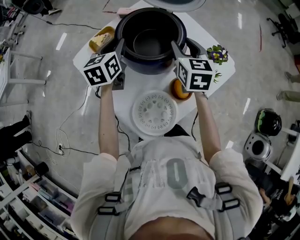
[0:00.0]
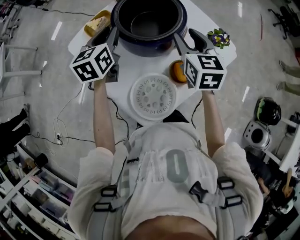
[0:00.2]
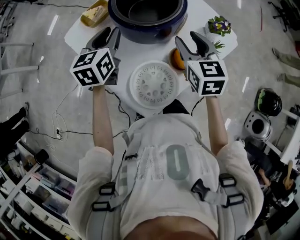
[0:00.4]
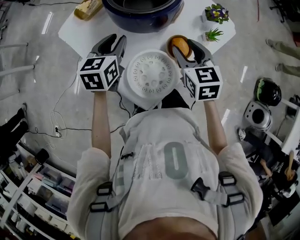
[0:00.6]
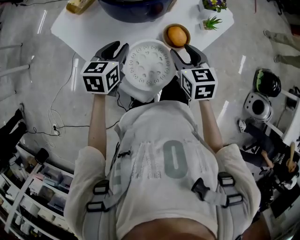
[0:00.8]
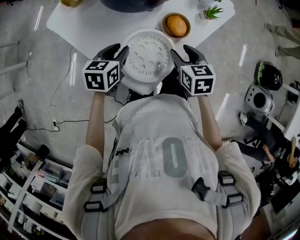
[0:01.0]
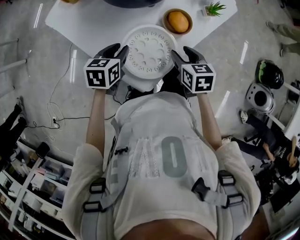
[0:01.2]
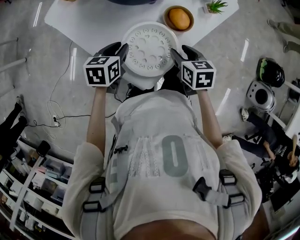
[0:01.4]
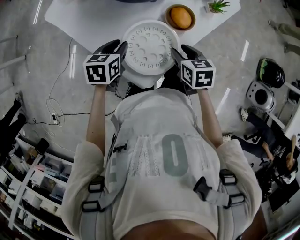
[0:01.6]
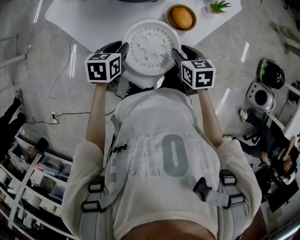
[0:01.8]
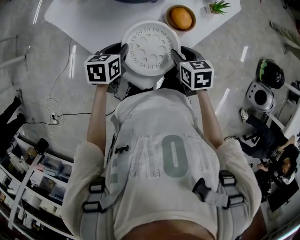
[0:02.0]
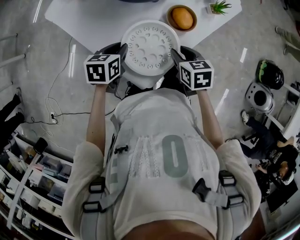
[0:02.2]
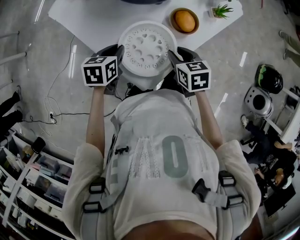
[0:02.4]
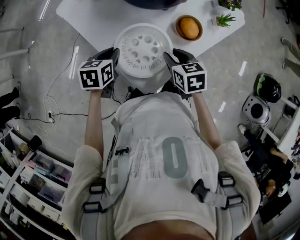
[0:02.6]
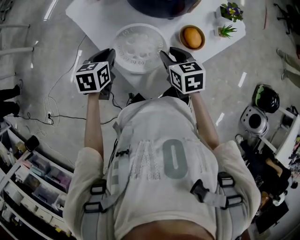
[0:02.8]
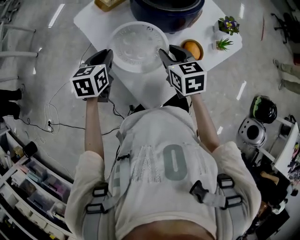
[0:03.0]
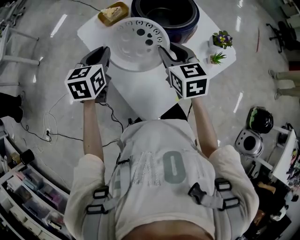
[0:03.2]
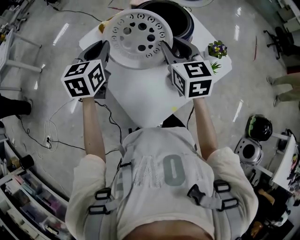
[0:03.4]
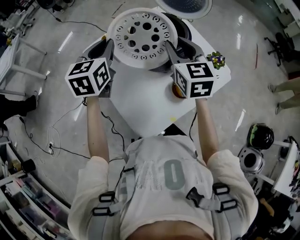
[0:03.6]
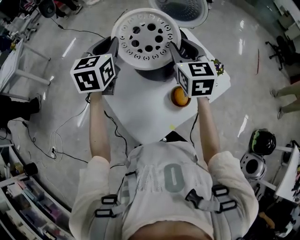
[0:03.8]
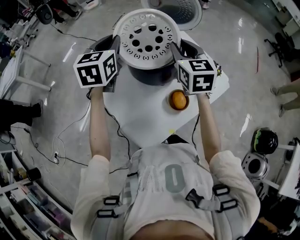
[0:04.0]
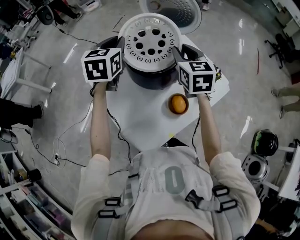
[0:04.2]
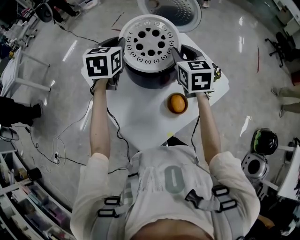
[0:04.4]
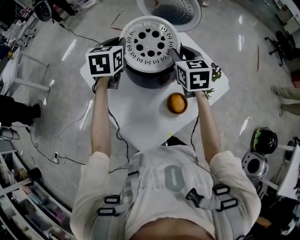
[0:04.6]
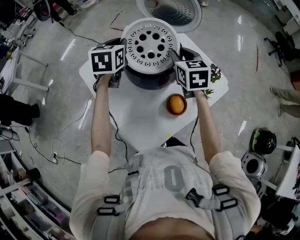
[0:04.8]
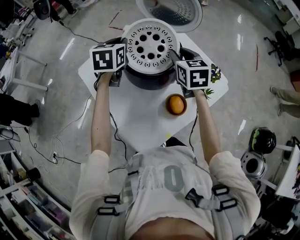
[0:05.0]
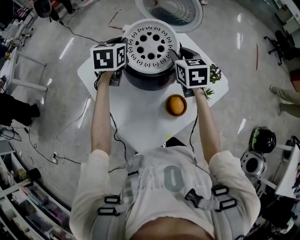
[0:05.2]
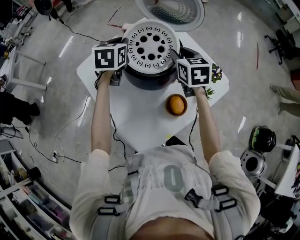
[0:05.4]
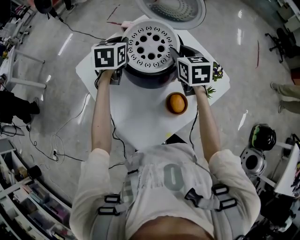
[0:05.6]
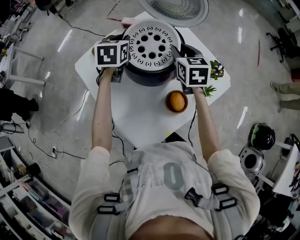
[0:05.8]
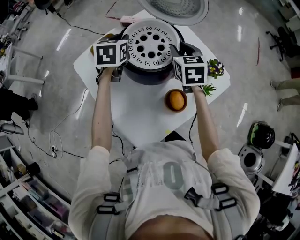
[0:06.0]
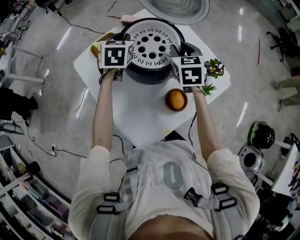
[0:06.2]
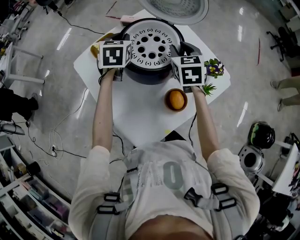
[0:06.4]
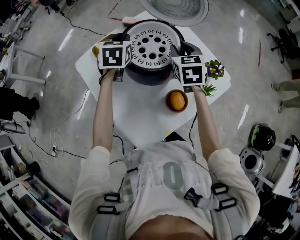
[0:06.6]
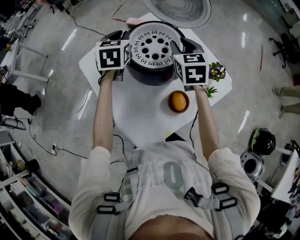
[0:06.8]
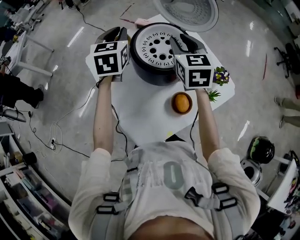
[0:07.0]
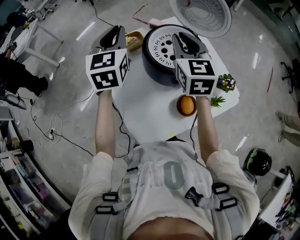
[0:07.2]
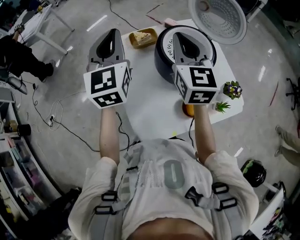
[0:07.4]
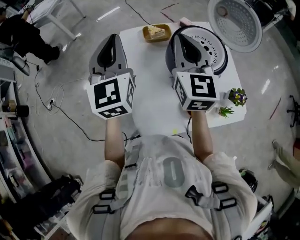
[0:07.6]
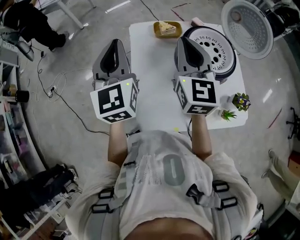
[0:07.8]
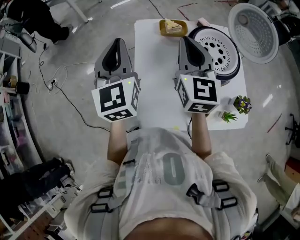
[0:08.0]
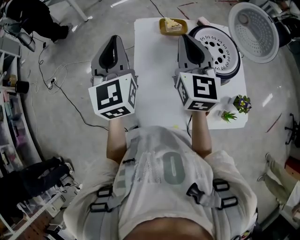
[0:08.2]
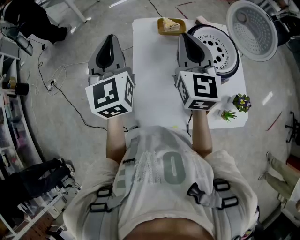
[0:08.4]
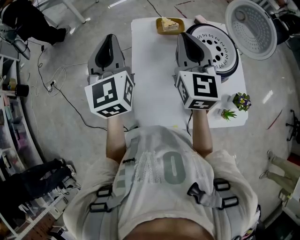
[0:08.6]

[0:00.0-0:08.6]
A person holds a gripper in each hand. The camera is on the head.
0:00.0 to 0:01.4: Both grippers travel together backward and downward, about 35 cm. The right gripper swivels some 30 degrees. The left gripper changes its angle by approximately 30 degrees.
0:01.4 to 0:02.8: The left gripper shifts about 10 cm to the left. The right gripper moves to the left and upward, roughly 10 cm.
0:02.8 to 0:04.4: Both grippers move upward, forward and to the right, about 35 cm. The left gripper swivels roughly 30 degrees. Meanwhile the right gripper swivels roughly 30 degrees.
0:04.4 to 0:05.8: The right gripper is displaced downward by some 5 cm; the left gripper is displaced downward and forward by roughly 10 cm.
0:05.8 to 0:07.2: The right gripper travels upward and to the left by some 15 cm, and changes its angle by some 20 degrees, while the left gripper moves upward, backward and to the left, some 20 cm, and swivels roughly 30 degrees.
0:07.2 to 0:08.6: The right gripper shifts about 15 cm to the left, and changes its angle by roughly 20 degrees. The left gripper moves to the left and backward, approximately 25 cm, and changes its angle by roughly 30 degrees.

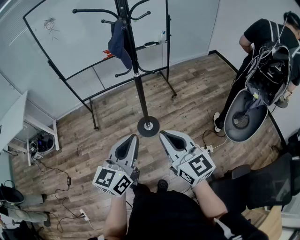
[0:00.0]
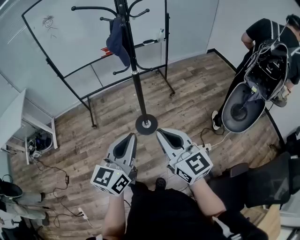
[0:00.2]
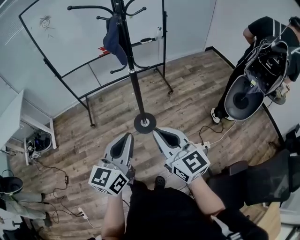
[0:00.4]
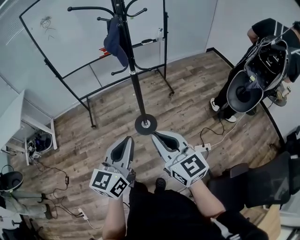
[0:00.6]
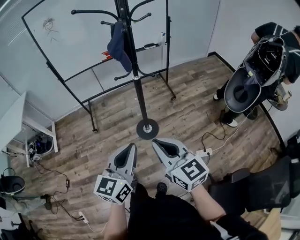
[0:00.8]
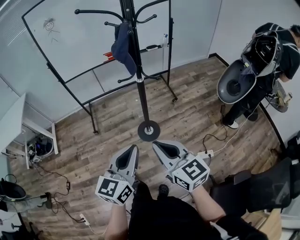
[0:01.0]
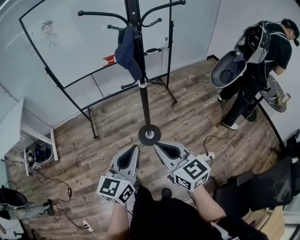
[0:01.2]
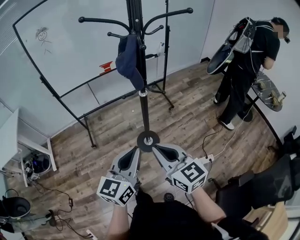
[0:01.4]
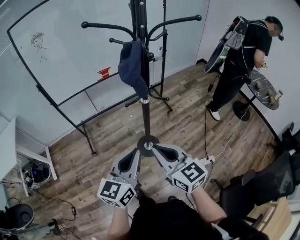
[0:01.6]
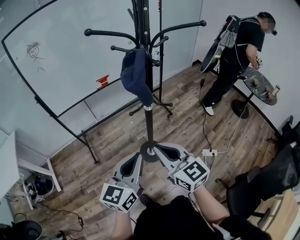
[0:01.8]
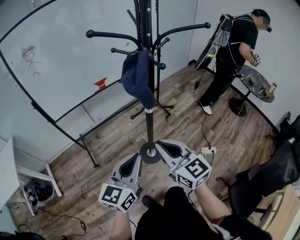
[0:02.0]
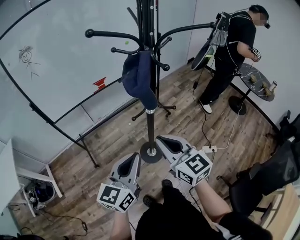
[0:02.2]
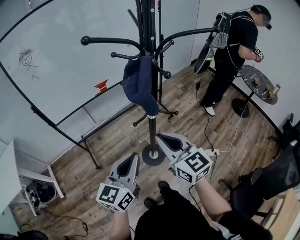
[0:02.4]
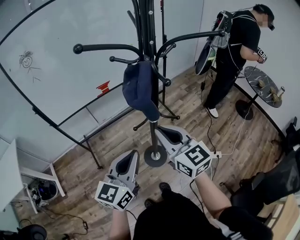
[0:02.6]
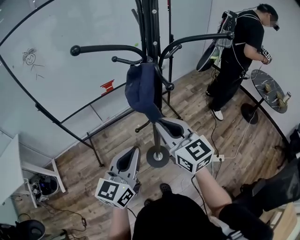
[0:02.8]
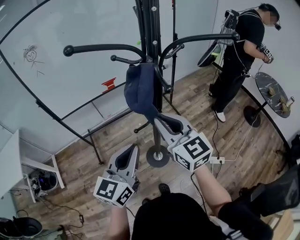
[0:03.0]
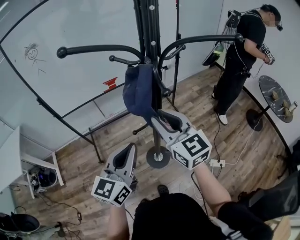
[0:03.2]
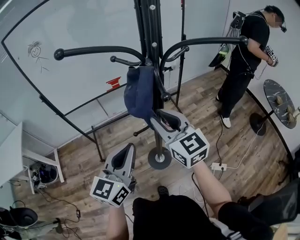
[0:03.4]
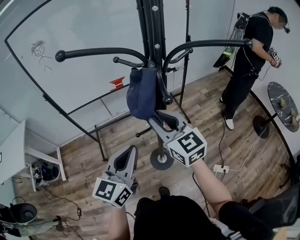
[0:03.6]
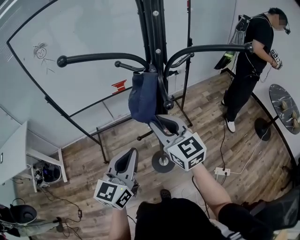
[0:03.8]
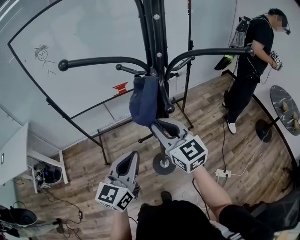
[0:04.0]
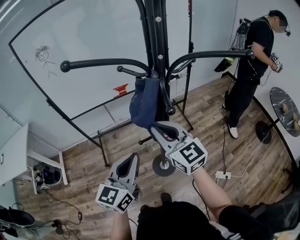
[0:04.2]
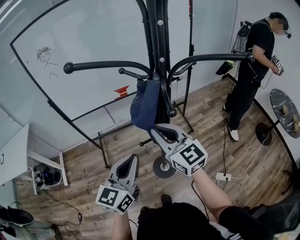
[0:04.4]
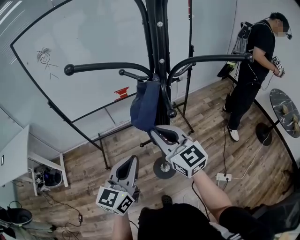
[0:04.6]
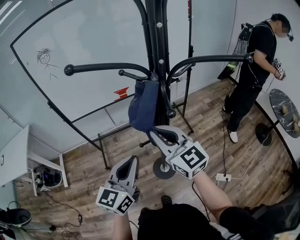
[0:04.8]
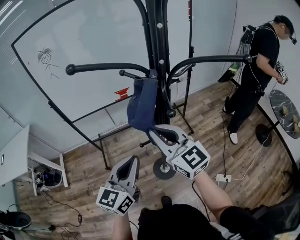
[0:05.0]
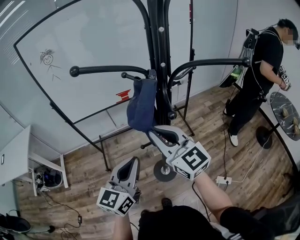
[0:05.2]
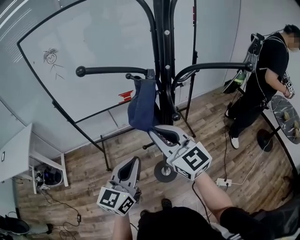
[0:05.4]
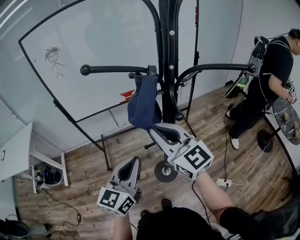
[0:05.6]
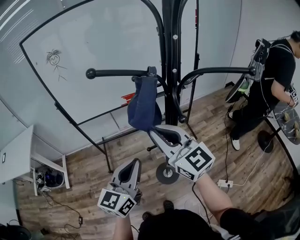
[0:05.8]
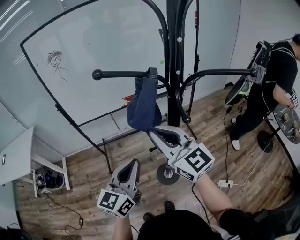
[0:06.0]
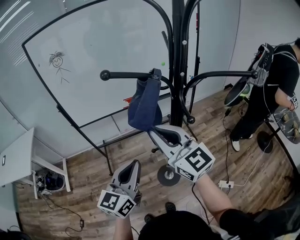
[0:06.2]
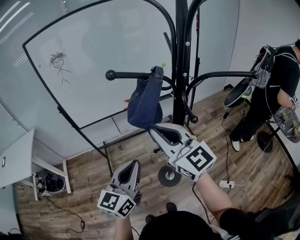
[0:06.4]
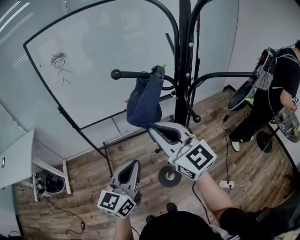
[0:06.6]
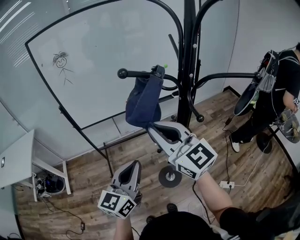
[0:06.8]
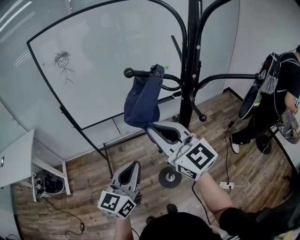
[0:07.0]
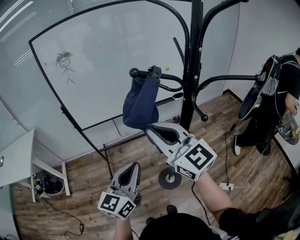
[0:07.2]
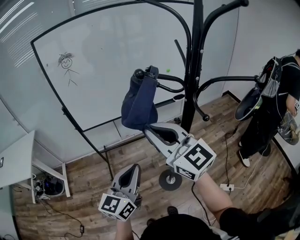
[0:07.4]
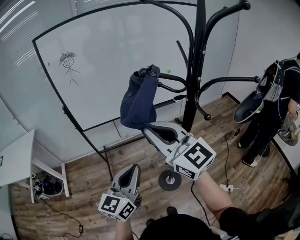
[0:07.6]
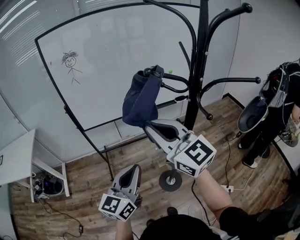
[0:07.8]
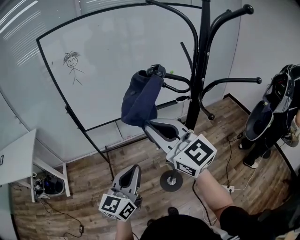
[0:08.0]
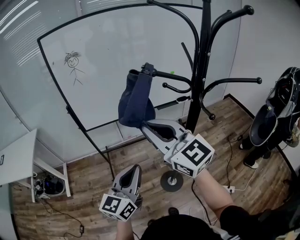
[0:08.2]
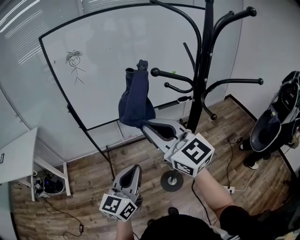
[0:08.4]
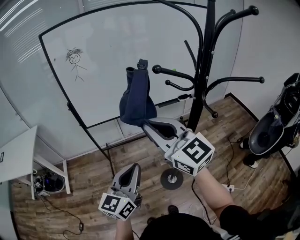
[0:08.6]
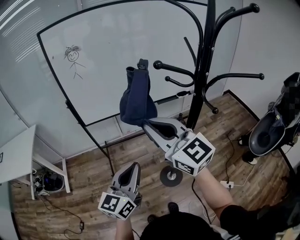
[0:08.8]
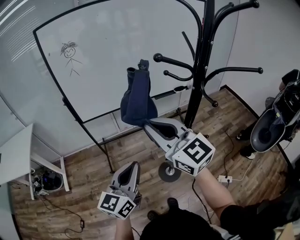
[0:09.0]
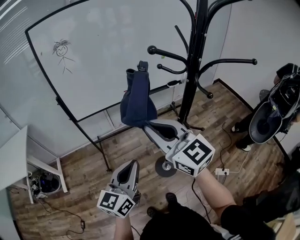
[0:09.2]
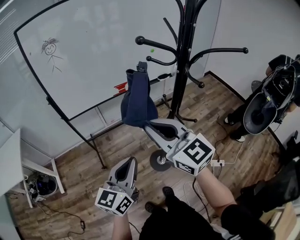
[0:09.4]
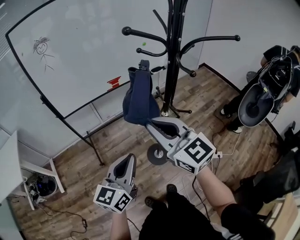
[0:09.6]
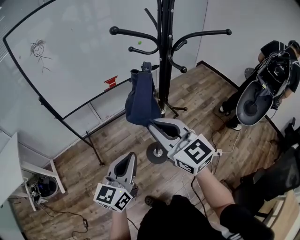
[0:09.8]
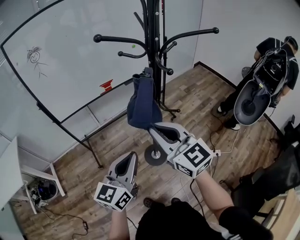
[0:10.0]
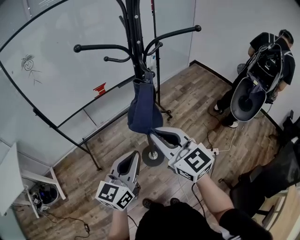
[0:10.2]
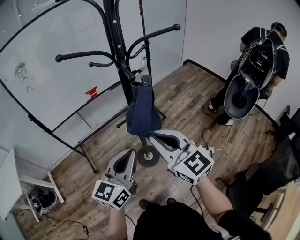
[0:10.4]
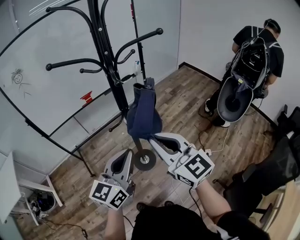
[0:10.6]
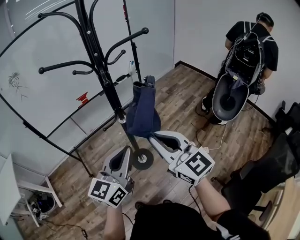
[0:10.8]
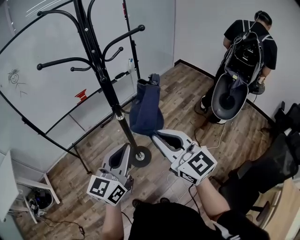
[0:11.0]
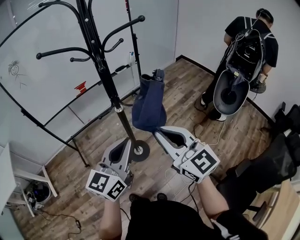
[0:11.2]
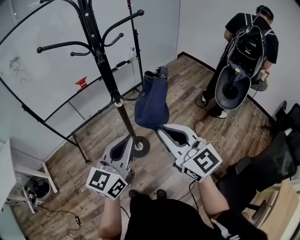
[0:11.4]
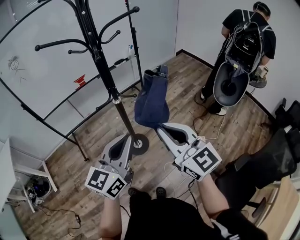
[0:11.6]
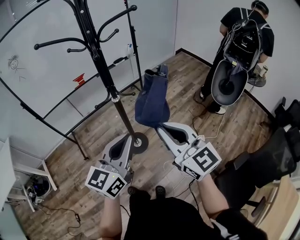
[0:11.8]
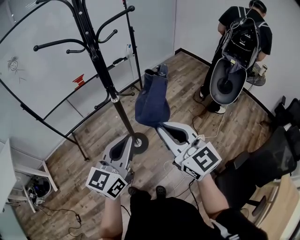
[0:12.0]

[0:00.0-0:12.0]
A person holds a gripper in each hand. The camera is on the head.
0:00.0 to 0:01.6: The grippers both shift forward and to the left by about 20 cm.
0:01.6 to 0:03.0: The two grippers go roughly 20 cm forward.
0:03.0 to 0:04.4: The grippers stay close to where they were, moving slightly.
0:04.4 to 0:06.0: The right gripper shifts roughly 10 cm upward.
0:06.0 to 0:07.6: The left gripper heads to the left, covering about 10 cm, while the right gripper moves to the left and upward, about 10 cm.
0:07.6 to 0:09.0: The grippers move only a little.
0:09.0 to 0:10.4: The left gripper heads to the right, covering roughly 20 cm. The right gripper shifts approximately 25 cm to the right and backward.
0:10.4 to 0:12.0: The grippers both shift to the right and backward by roughly 15 cm.

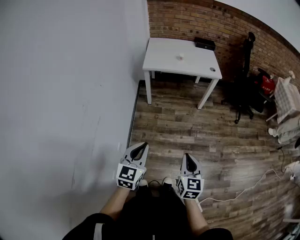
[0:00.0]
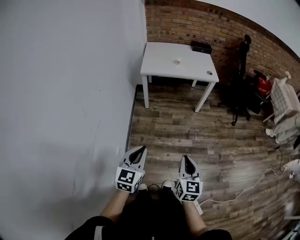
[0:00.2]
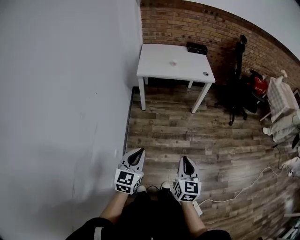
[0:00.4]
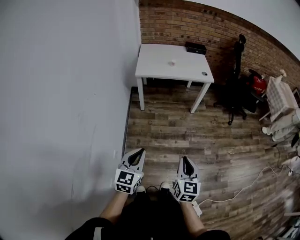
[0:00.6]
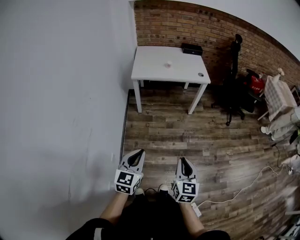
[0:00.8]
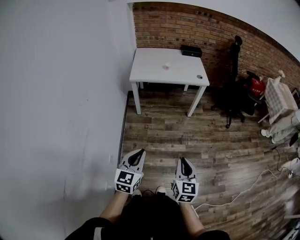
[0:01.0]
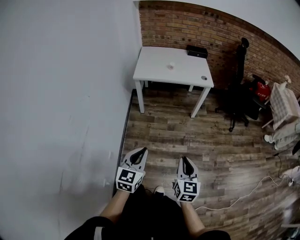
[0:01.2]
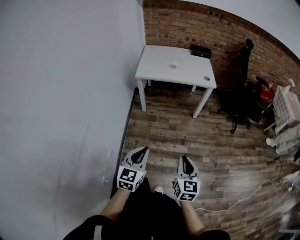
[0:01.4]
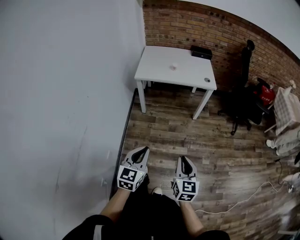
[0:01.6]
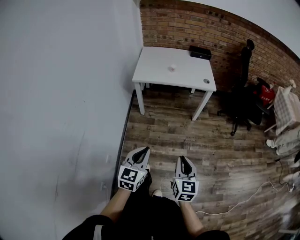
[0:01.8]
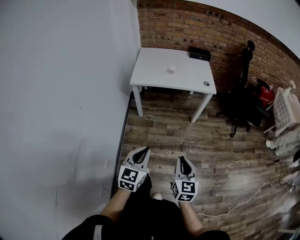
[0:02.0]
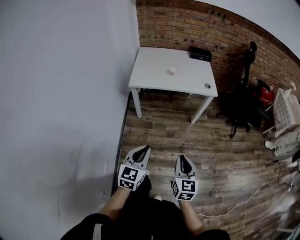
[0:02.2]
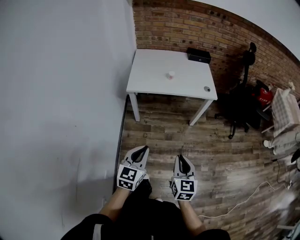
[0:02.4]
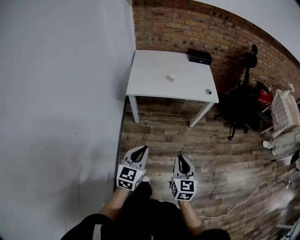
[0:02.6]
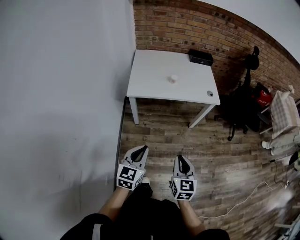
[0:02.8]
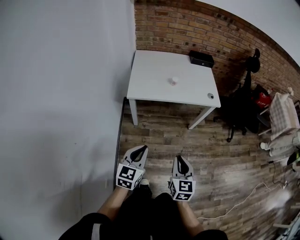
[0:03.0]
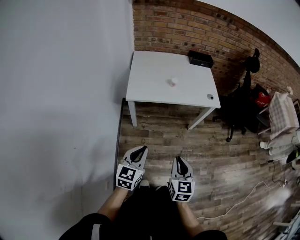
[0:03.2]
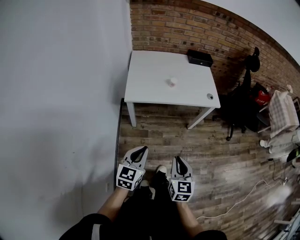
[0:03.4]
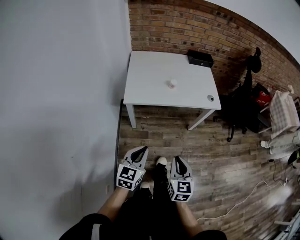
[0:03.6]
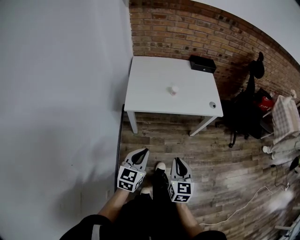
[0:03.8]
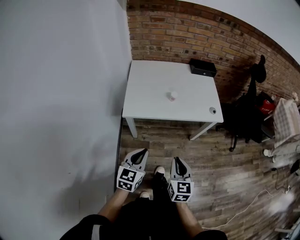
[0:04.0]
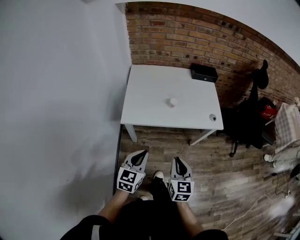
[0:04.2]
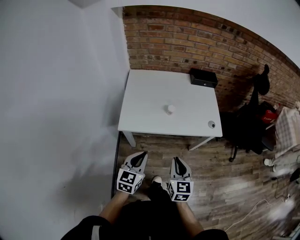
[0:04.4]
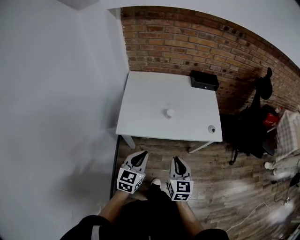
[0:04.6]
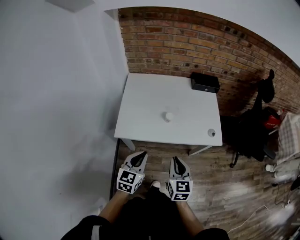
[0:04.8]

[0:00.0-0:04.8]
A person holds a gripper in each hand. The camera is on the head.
0:00.0 to 0:01.6: The right gripper shifts some 10 cm forward and to the right, while the left gripper shifts about 10 cm to the right and forward.
0:01.6 to 0:03.2: The grippers both shift forward and to the left by approximately 35 cm.
0:03.2 to 0:04.8: The grippers both shift forward by about 30 cm.
